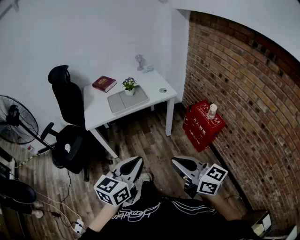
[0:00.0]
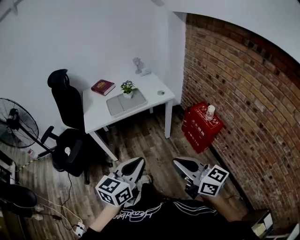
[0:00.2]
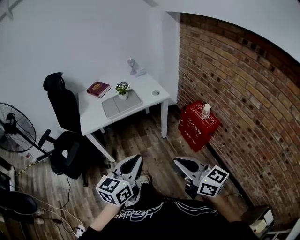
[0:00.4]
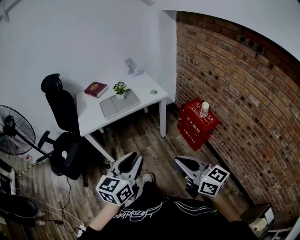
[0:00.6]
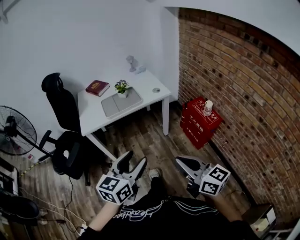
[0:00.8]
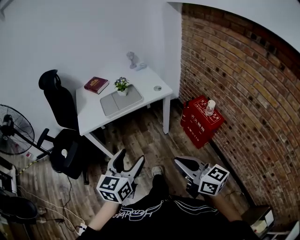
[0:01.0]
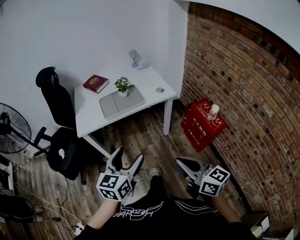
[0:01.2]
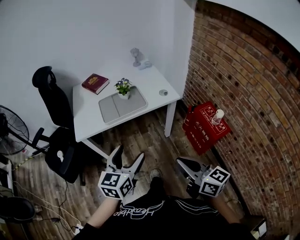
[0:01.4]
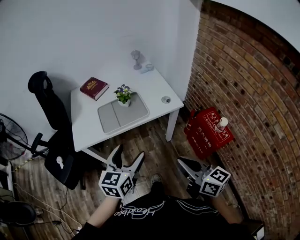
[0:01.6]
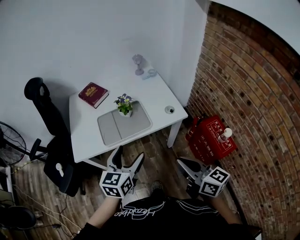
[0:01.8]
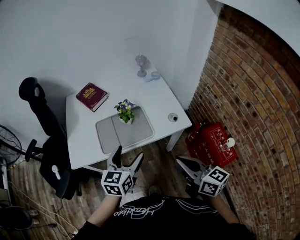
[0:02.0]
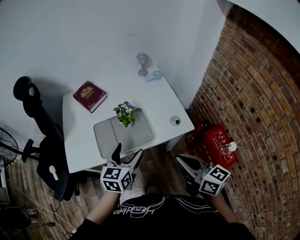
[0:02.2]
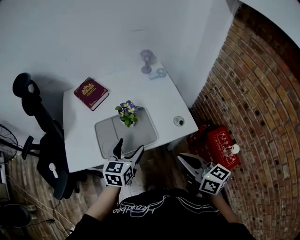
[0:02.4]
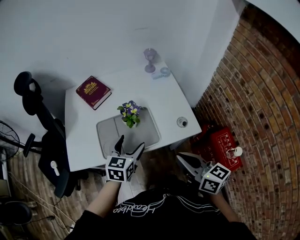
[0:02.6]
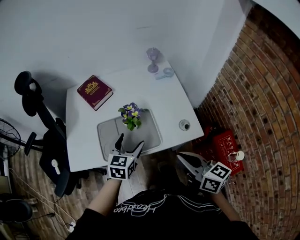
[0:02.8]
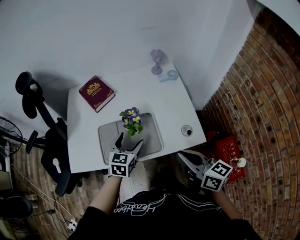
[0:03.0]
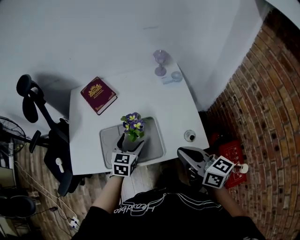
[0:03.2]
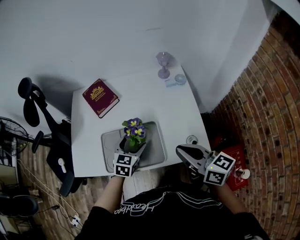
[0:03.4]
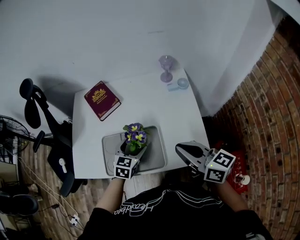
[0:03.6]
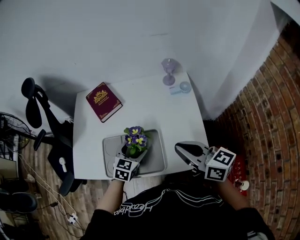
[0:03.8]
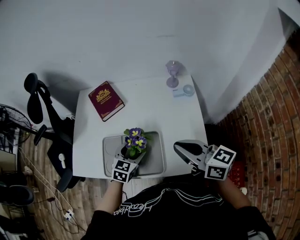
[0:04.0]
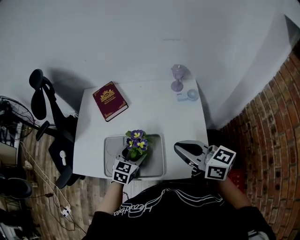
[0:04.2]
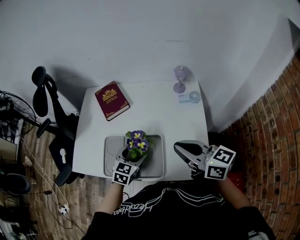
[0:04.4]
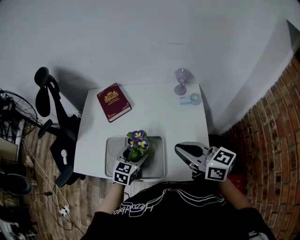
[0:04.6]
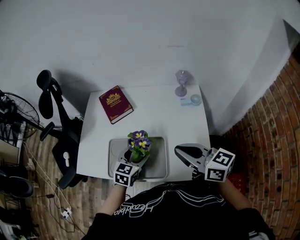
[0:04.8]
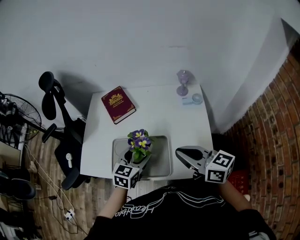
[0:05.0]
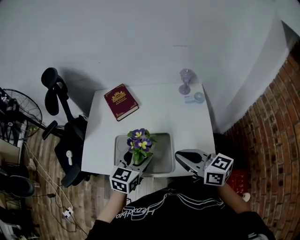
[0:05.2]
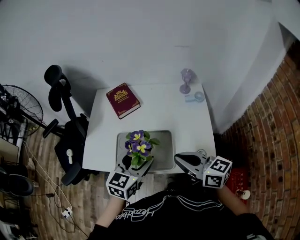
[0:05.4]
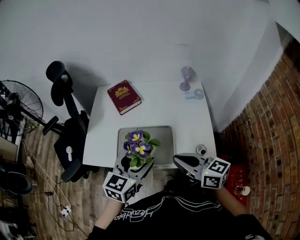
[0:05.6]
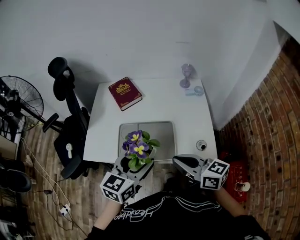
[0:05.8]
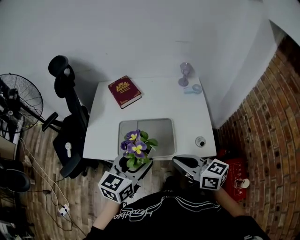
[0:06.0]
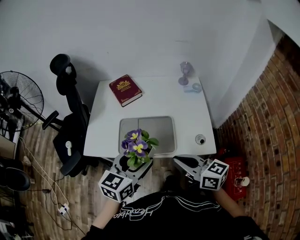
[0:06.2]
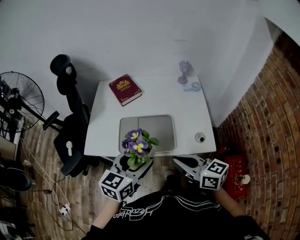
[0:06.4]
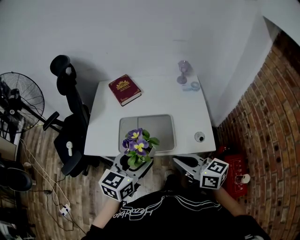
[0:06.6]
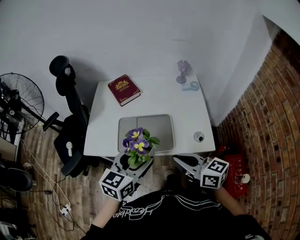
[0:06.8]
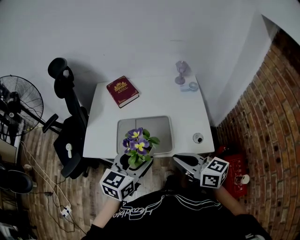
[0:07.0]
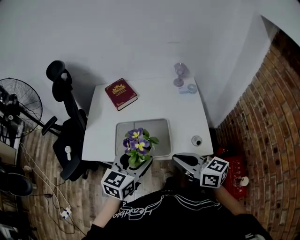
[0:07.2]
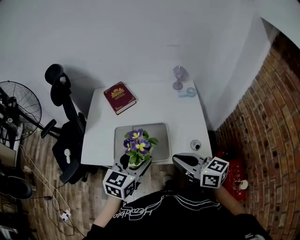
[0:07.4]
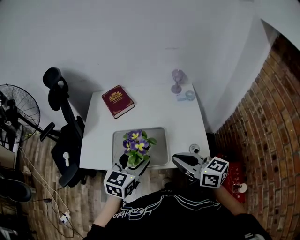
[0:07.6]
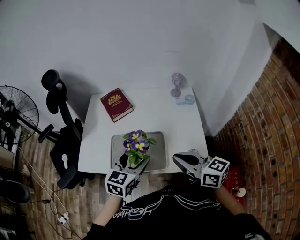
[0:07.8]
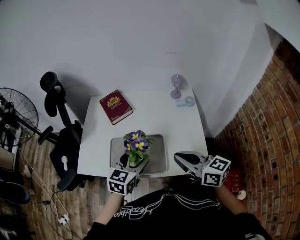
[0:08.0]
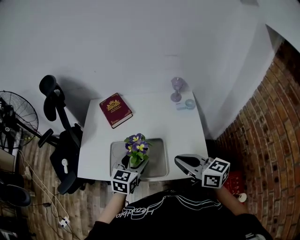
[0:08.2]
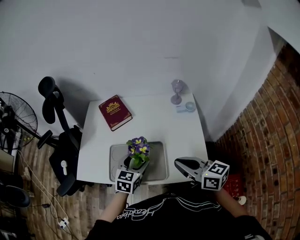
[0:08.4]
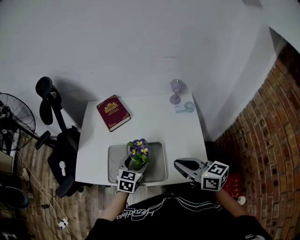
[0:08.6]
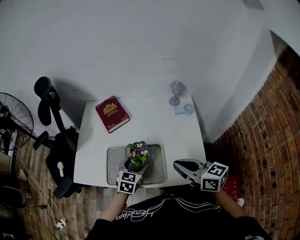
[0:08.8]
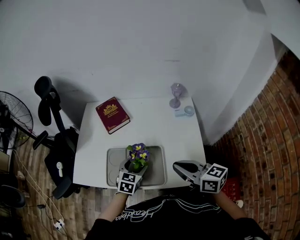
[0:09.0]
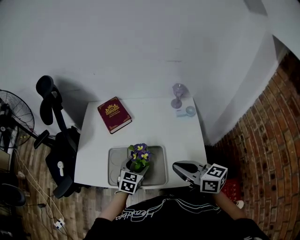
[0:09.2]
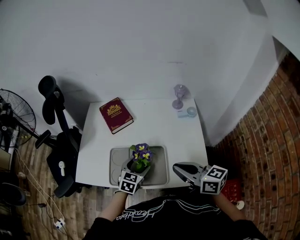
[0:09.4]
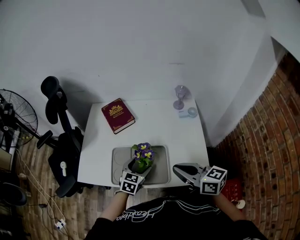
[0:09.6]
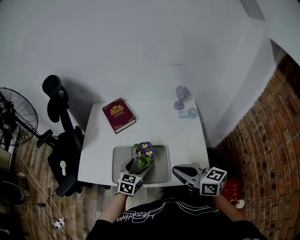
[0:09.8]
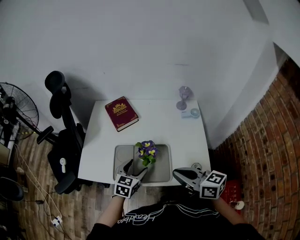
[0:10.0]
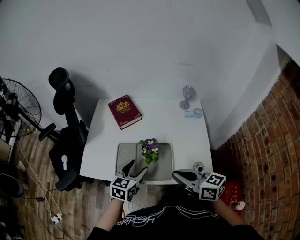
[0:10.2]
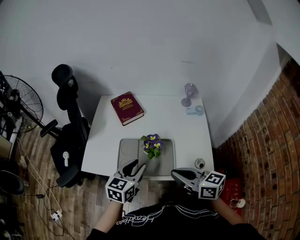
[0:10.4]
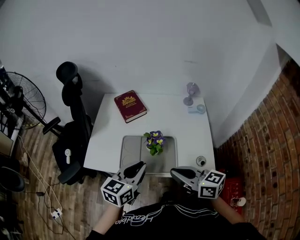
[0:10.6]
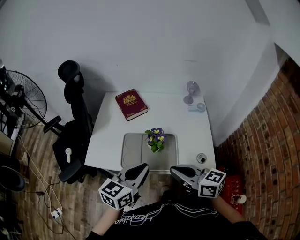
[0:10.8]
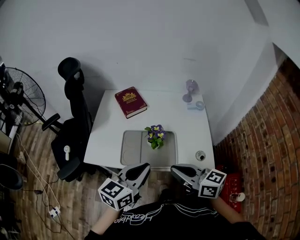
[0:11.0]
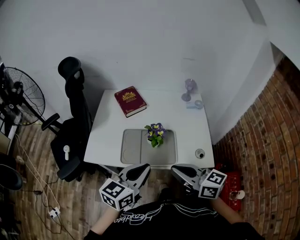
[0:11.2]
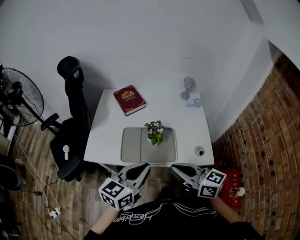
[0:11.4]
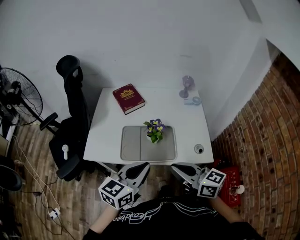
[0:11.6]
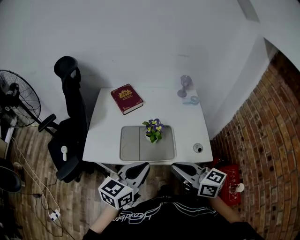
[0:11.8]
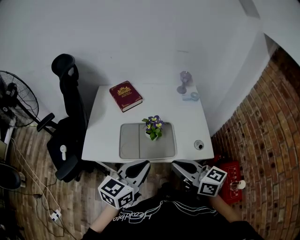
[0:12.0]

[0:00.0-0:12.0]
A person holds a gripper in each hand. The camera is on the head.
0:00.0 to 0:01.6: Both grippers travel together forward, approximately 25 cm. The left gripper opens up.
0:01.6 to 0:03.0: The right gripper moves forward, approximately 30 cm, while the left gripper goes about 35 cm forward and downward.
0:03.0 to 0:04.4: The left gripper shifts by approximately 5 cm; the right gripper heads forward, covering about 15 cm, and rotates approximately 30 degrees.
0:04.4 to 0:06.0: The left gripper goes some 25 cm upward, backward and to the left, and changes its angle by about 20 degrees; the right gripper shifts roughly 20 cm backward and to the left.
0:06.0 to 0:07.6: The left gripper changes place by roughly 5 cm. The right gripper shifts by approximately 5 cm.
0:07.6 to 0:09.0: The right gripper shifts approximately 5 cm forward. Meanwhile the left gripper travels downward and forward by about 20 cm.
0:09.0 to 0:10.4: The right gripper travels to the left and backward by approximately 10 cm. The left gripper moves upward, backward and to the left, approximately 15 cm, and closes its fingers.
0:10.4 to 0:12.0: The right gripper moves backward, about 5 cm. The left gripper moves backward and upward, roughly 15 cm, and closes.

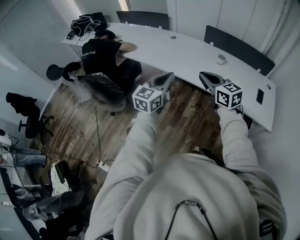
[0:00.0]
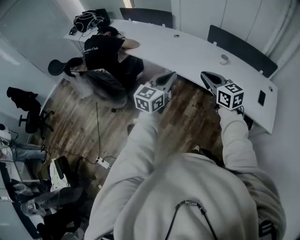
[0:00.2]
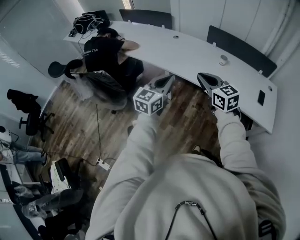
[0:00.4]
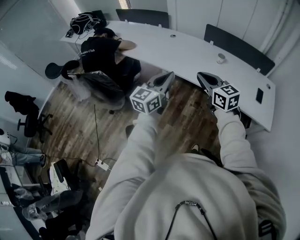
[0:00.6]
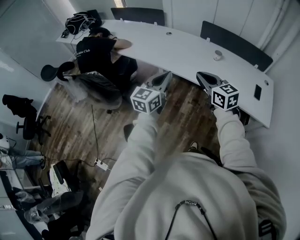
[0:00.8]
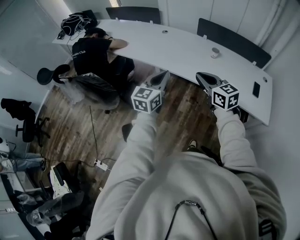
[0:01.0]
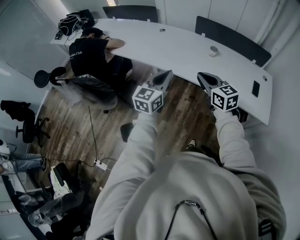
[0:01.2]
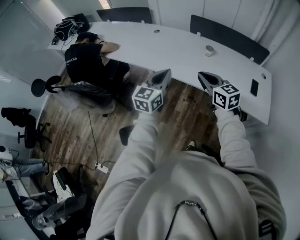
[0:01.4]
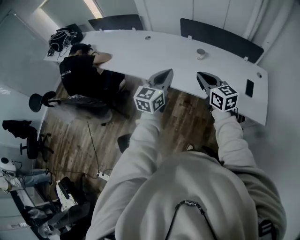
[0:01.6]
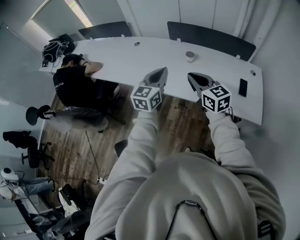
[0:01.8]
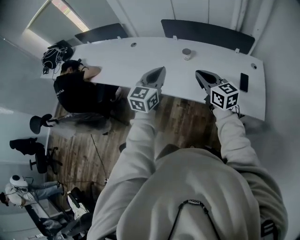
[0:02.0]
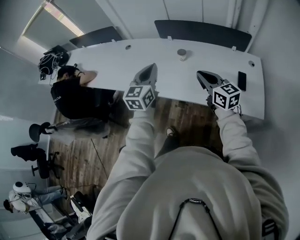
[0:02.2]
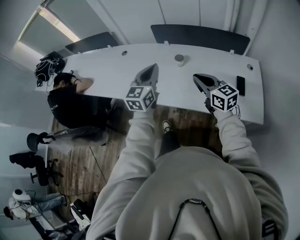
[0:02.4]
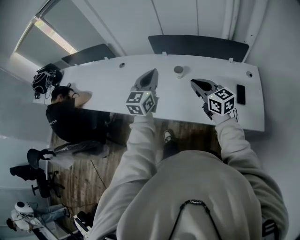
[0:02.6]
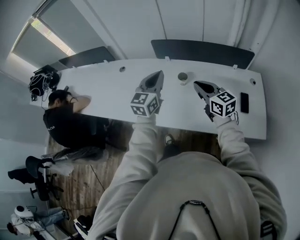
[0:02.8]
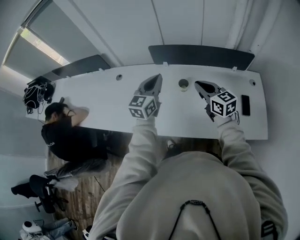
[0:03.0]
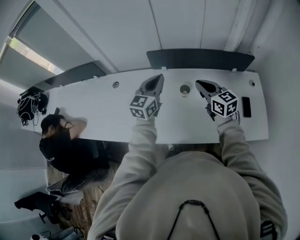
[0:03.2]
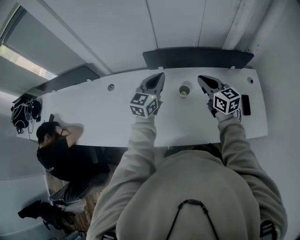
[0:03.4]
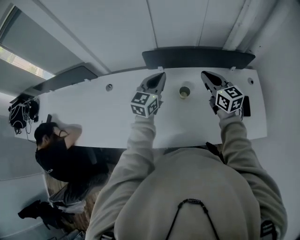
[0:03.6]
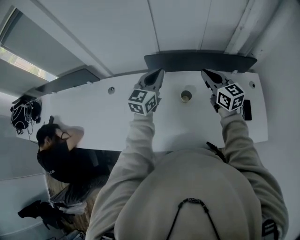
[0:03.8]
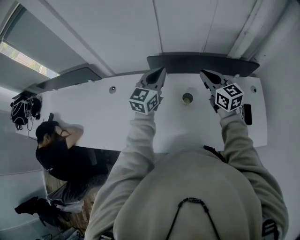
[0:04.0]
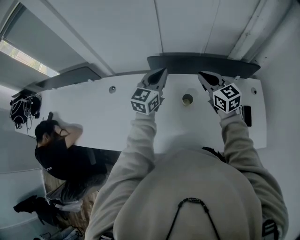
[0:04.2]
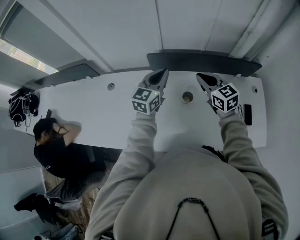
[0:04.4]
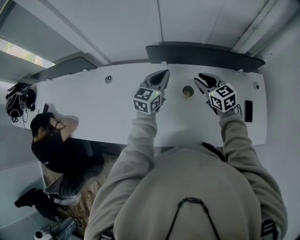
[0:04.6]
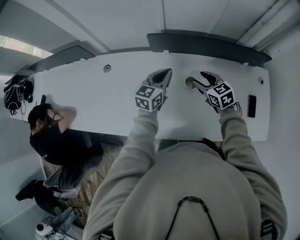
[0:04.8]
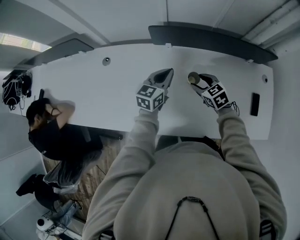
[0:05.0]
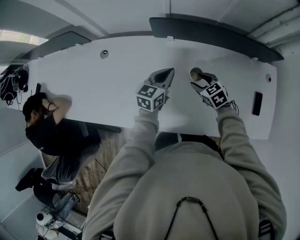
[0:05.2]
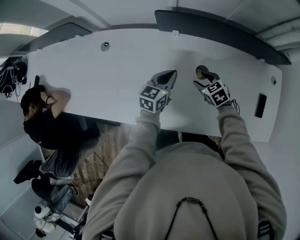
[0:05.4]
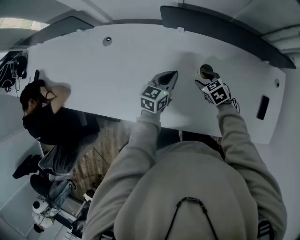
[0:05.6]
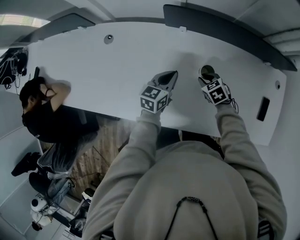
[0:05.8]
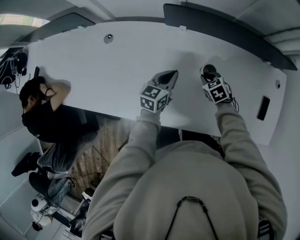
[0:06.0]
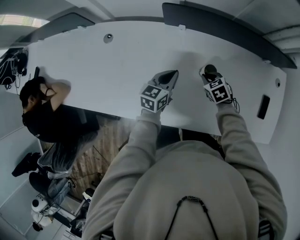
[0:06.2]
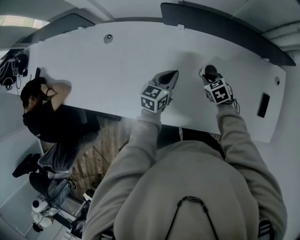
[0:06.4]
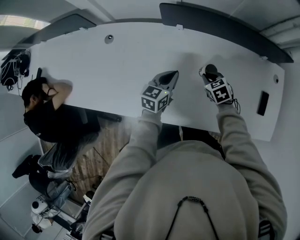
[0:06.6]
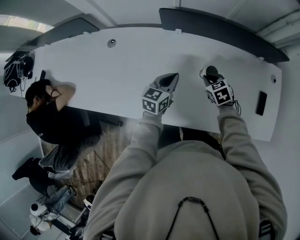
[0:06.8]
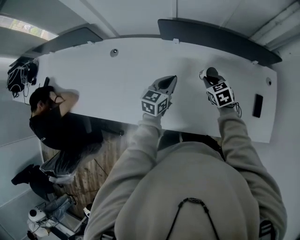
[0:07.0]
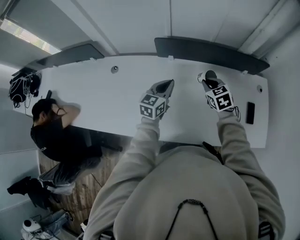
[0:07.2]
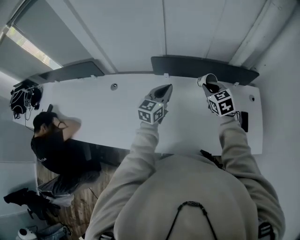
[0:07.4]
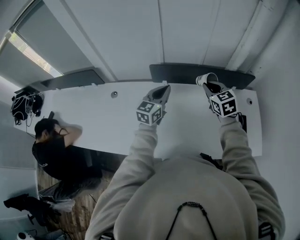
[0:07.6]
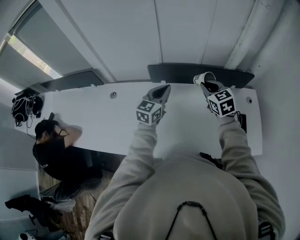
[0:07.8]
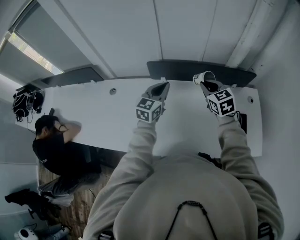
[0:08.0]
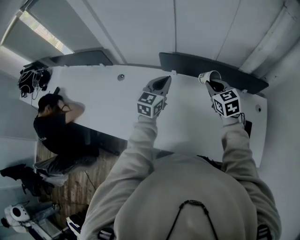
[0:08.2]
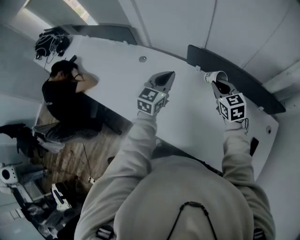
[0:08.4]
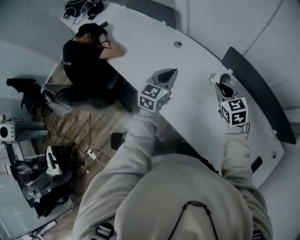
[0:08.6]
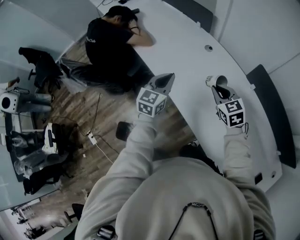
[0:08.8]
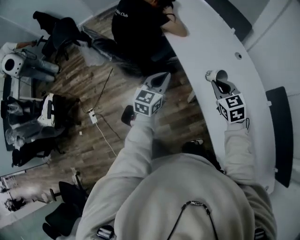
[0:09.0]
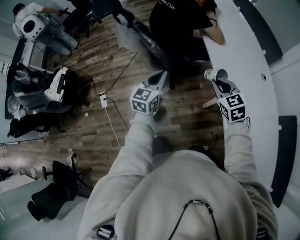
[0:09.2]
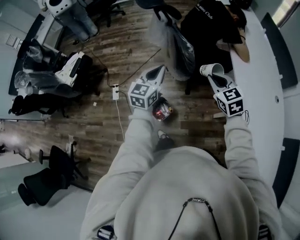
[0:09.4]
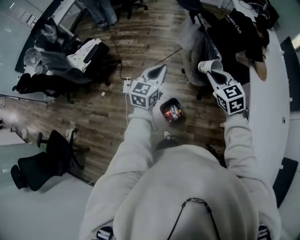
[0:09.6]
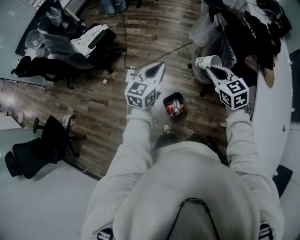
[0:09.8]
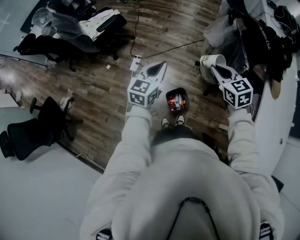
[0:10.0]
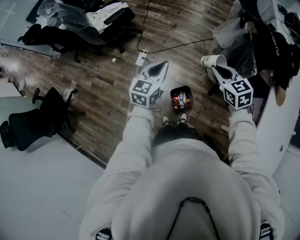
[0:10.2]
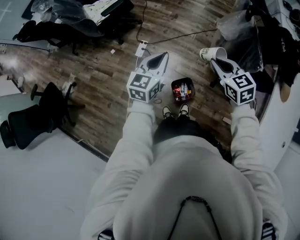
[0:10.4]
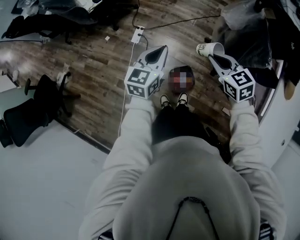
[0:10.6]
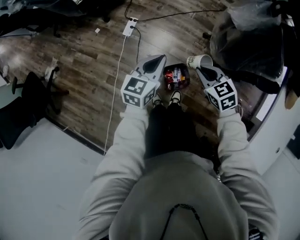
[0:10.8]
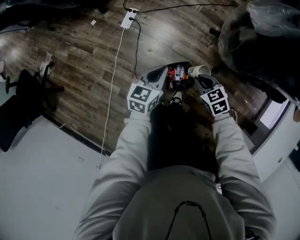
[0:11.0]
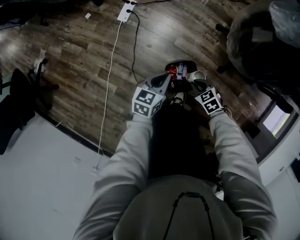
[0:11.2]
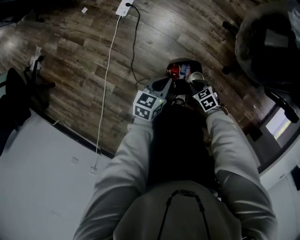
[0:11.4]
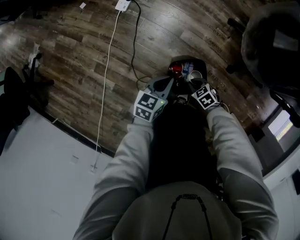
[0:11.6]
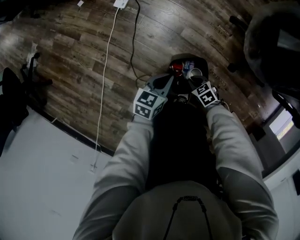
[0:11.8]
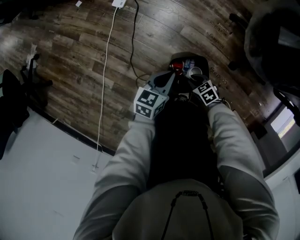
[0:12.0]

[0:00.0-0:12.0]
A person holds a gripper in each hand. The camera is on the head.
0:00.0 to 0:01.6: The two grippers go some 20 cm to the right and forward.
0:01.6 to 0:03.0: The left gripper shifts about 35 cm forward; the right gripper travels forward and to the right by about 30 cm.
0:03.0 to 0:04.4: The grippers both shift forward by some 15 cm.
0:04.4 to 0:06.0: The grippers both shift downward by roughly 25 cm. The left gripper swivels roughly 30 degrees. Meanwhile the right gripper points its fingers approximately 40 degrees further downward, and opens, then closes once more.
0:06.0 to 0:07.6: Both grippers travel together upward, some 30 cm. The right gripper points its fingers roughly 30 degrees further upward. The left gripper rotates approximately 30 degrees.
0:07.6 to 0:09.0: The pair of grippers is taken about 60 cm. The right gripper rotates some 70 degrees, while the left gripper rotates approximately 70 degrees.
0:09.0 to 0:10.4: The pair of grippers is taken approximately 70 cm. The left gripper rotates about 50 degrees, while the right gripper rotates about 50 degrees.
0:10.4 to 0:12.0: Both grippers move downward, roughly 70 cm. The right gripper rotates about 40 degrees; the left gripper swivels some 30 degrees.
